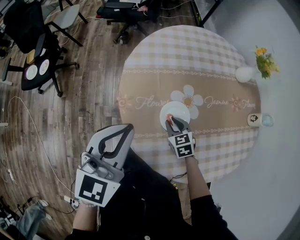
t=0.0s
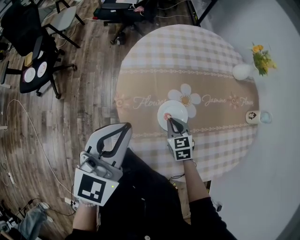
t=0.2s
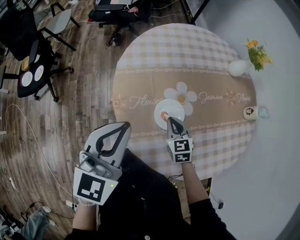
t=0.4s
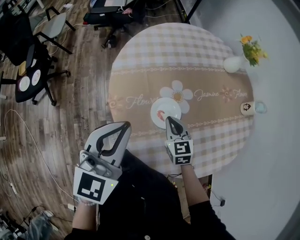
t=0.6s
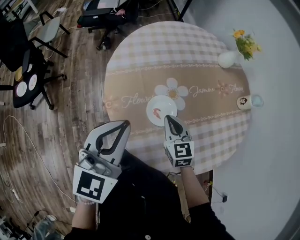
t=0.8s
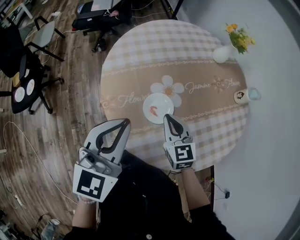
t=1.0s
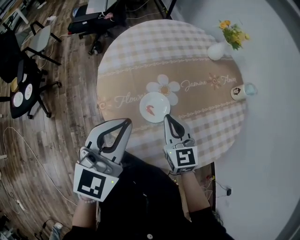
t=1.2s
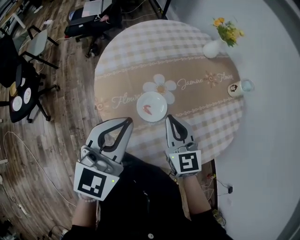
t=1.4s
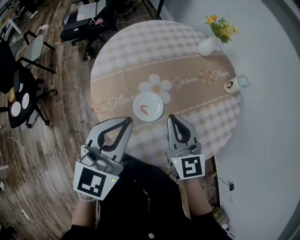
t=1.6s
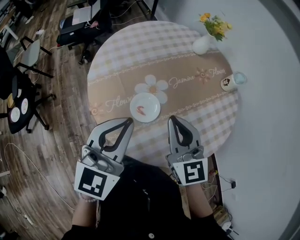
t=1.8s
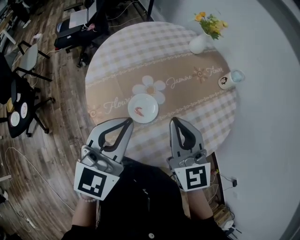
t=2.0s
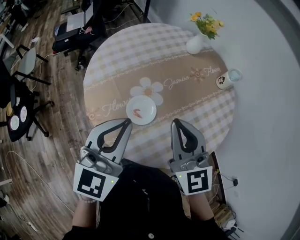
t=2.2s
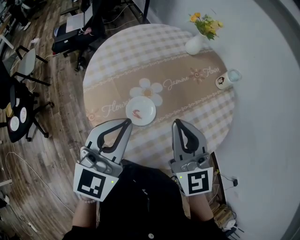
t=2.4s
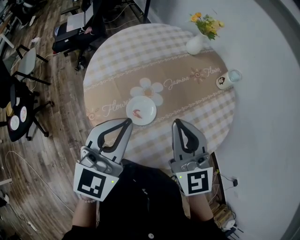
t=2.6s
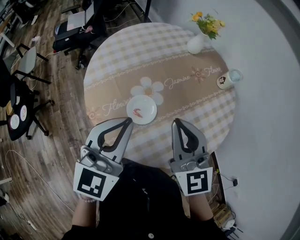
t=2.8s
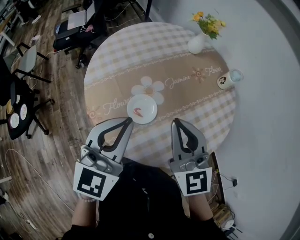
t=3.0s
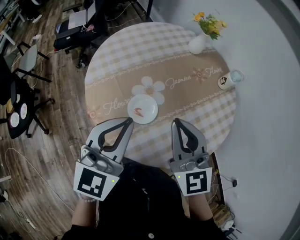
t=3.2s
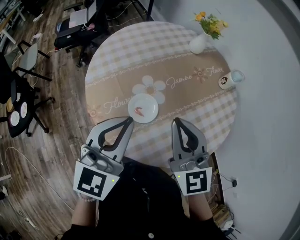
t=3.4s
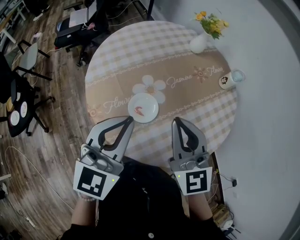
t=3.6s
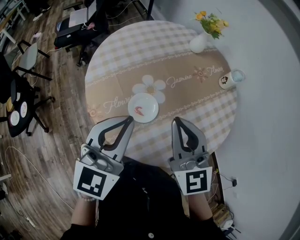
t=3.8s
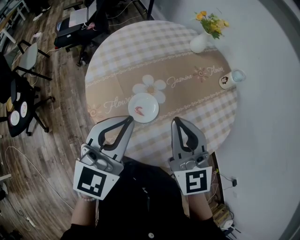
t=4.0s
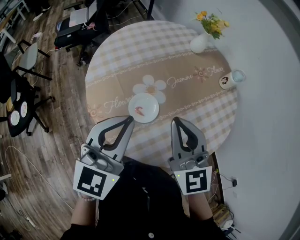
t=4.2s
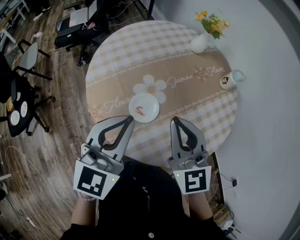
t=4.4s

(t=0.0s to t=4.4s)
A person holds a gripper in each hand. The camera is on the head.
t=0.0s - t=1.4s: The left gripper is displaced to the right by some 10 cm, while the right gripper shifts some 20 cm upward, and tilts its fingers some 30 degrees upward.
t=1.4s - t=3.0s: The right gripper moves upward, approximately 10 cm.
t=3.0s - t=4.4s: The two grippers keep their place.

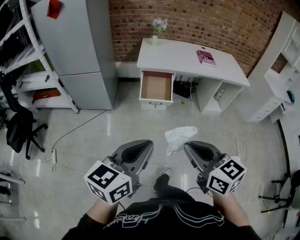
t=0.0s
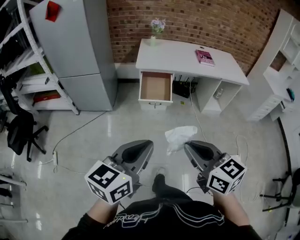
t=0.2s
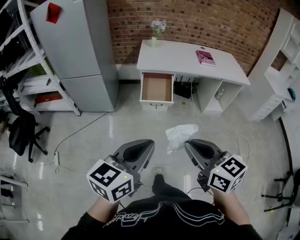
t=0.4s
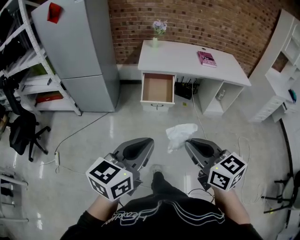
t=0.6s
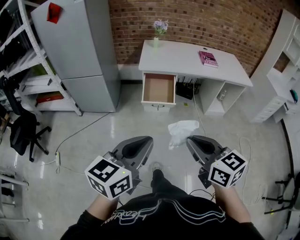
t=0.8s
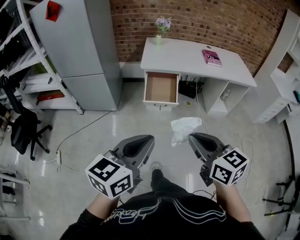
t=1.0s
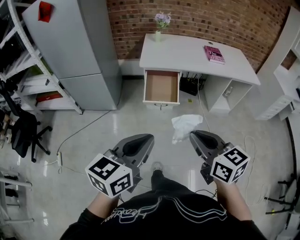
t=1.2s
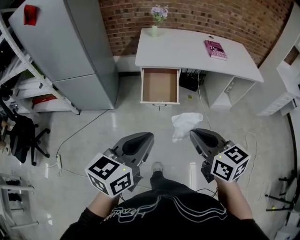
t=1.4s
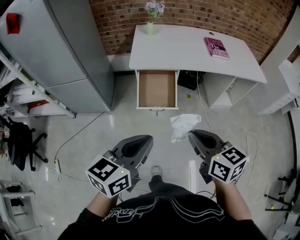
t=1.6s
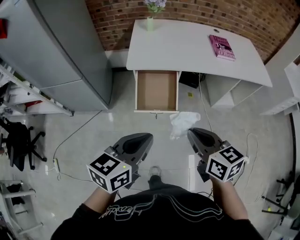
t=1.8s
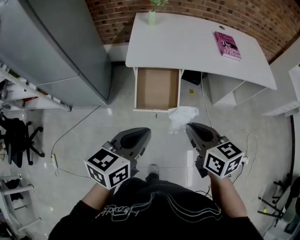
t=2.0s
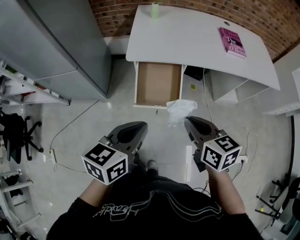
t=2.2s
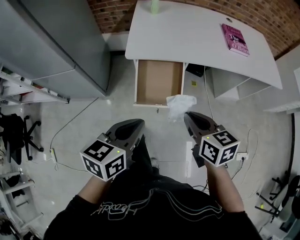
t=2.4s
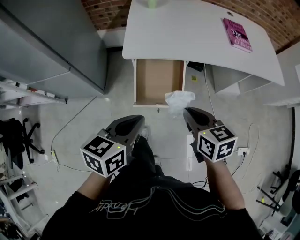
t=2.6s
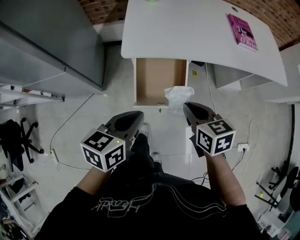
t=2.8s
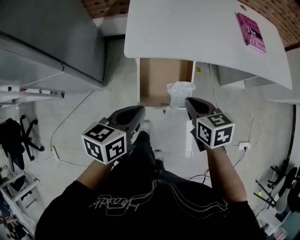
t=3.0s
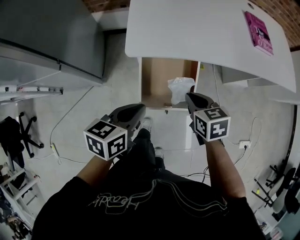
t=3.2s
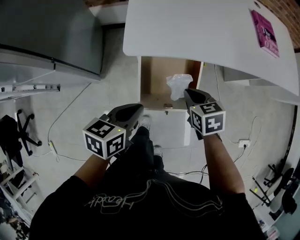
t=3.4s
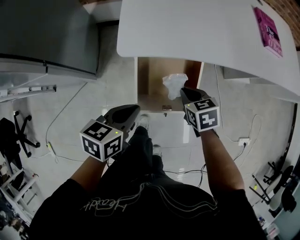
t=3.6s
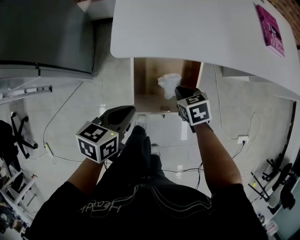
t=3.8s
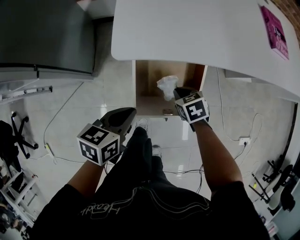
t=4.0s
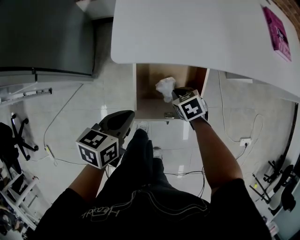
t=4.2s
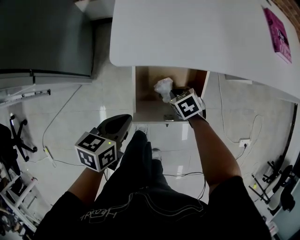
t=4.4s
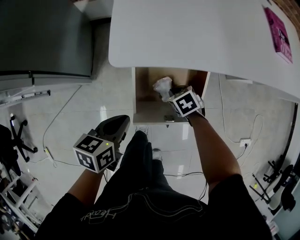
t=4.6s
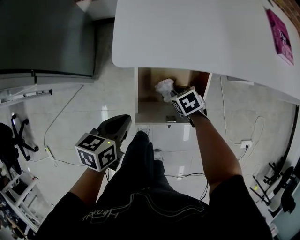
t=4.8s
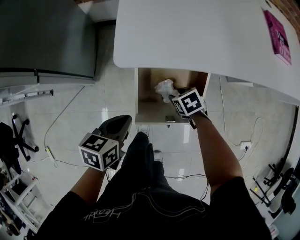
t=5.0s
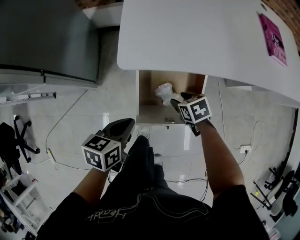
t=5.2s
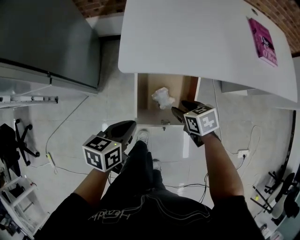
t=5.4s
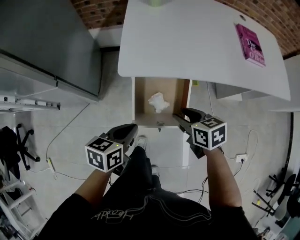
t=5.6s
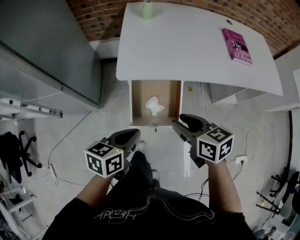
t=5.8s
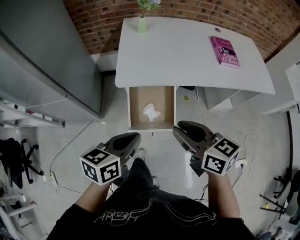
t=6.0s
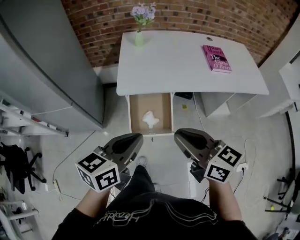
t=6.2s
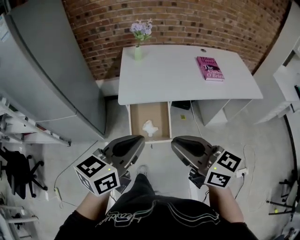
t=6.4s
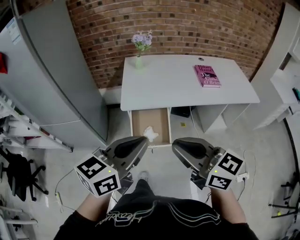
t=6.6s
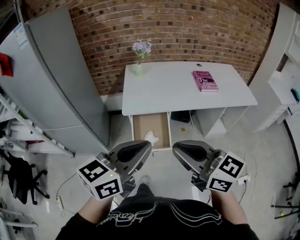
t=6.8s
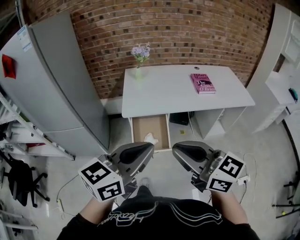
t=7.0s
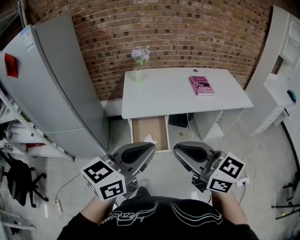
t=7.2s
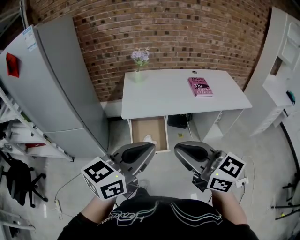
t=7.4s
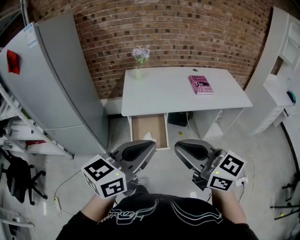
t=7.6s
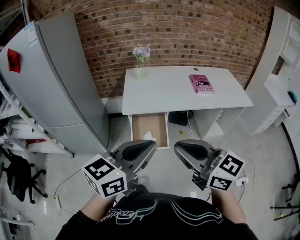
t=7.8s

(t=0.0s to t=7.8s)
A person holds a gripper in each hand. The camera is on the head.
t=0.0s - t=1.6s: Both grippers move forward, some 30 cm.
t=1.6s - t=3.2s: Both grippers travel together forward and downward, some 50 cm. The left gripper turns by about 20 degrees; the right gripper changes its angle by some 30 degrees.
t=3.2s - t=4.6s: The left gripper heads downward, covering roughly 15 cm, while the right gripper travels downward by roughly 25 cm, and swivels roughly 30 degrees.
t=4.6s - t=6.2s: The grippers both shift upward and backward by approximately 50 cm. The left gripper changes its angle by about 30 degrees. The right gripper tips its fingers upward by some 60 degrees, and opens and closes again.
t=6.2s - t=7.8s: Both grippers travel together backward and upward, roughly 25 cm.

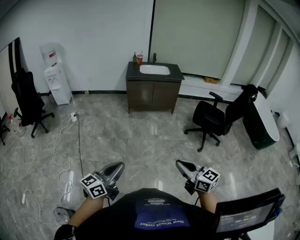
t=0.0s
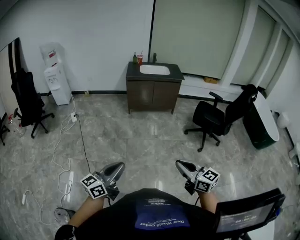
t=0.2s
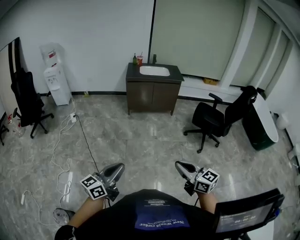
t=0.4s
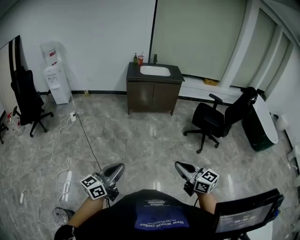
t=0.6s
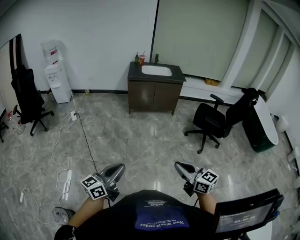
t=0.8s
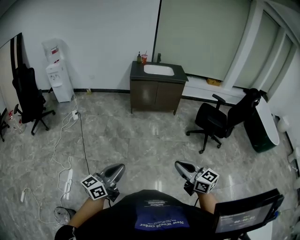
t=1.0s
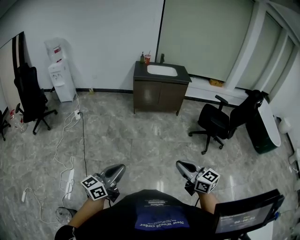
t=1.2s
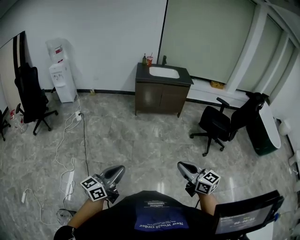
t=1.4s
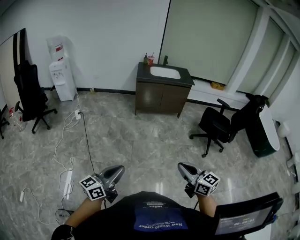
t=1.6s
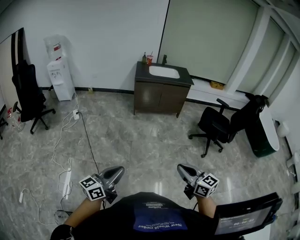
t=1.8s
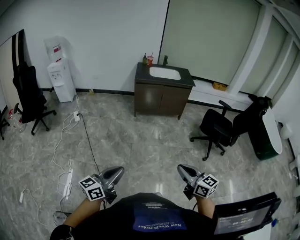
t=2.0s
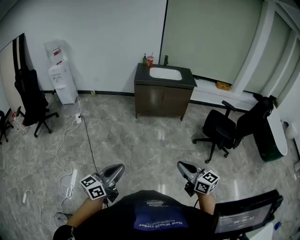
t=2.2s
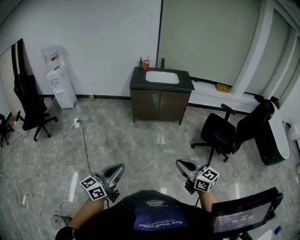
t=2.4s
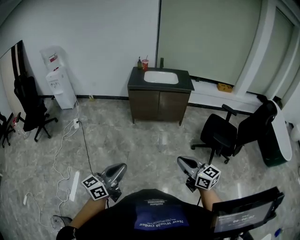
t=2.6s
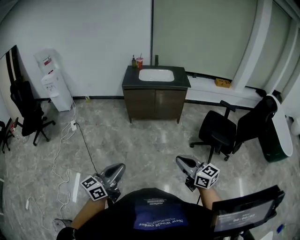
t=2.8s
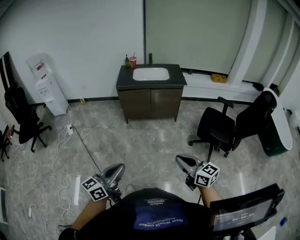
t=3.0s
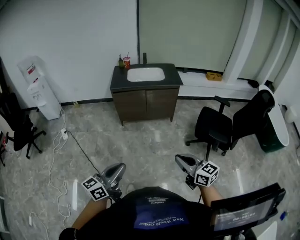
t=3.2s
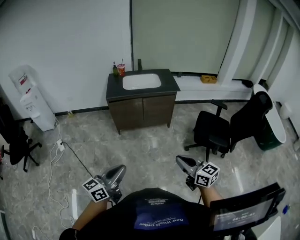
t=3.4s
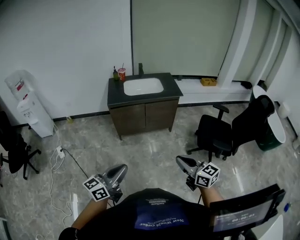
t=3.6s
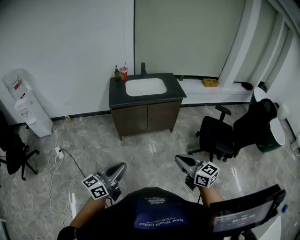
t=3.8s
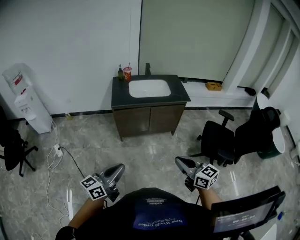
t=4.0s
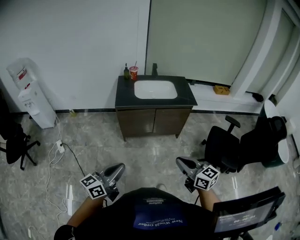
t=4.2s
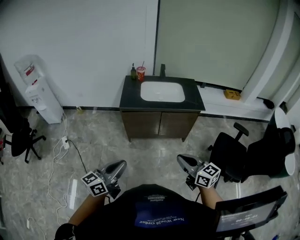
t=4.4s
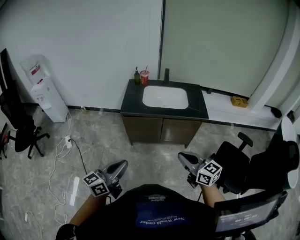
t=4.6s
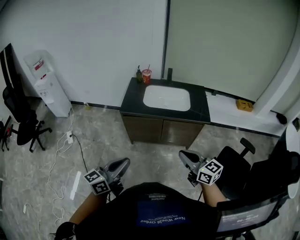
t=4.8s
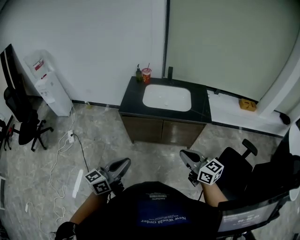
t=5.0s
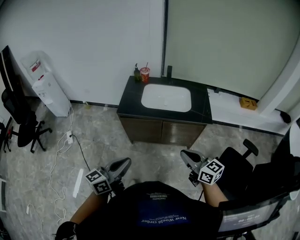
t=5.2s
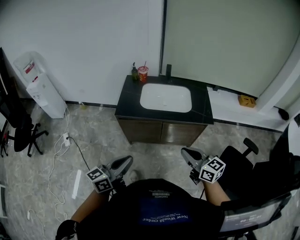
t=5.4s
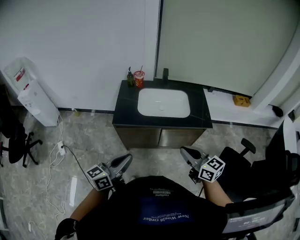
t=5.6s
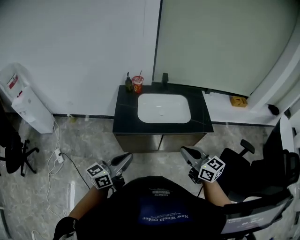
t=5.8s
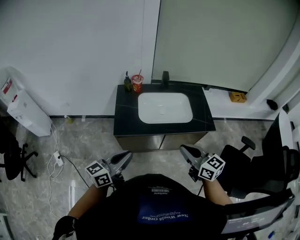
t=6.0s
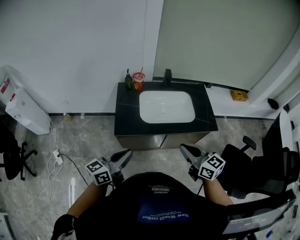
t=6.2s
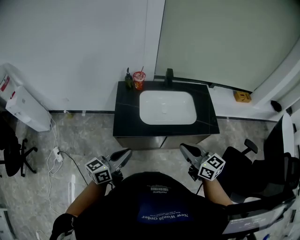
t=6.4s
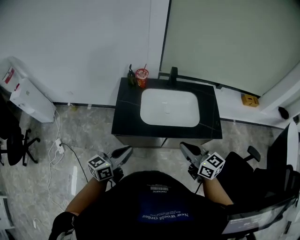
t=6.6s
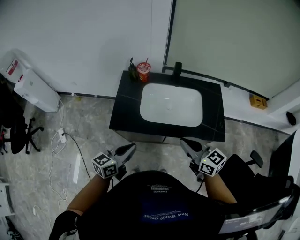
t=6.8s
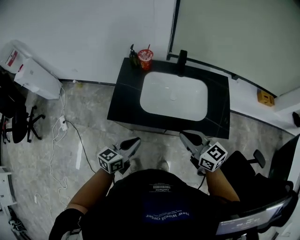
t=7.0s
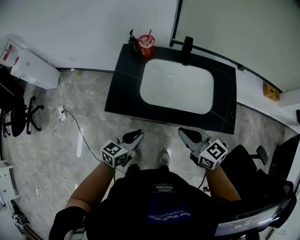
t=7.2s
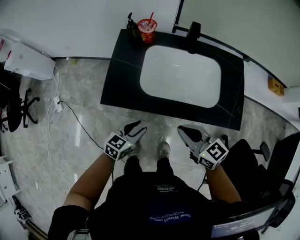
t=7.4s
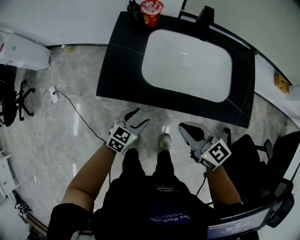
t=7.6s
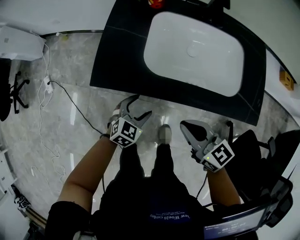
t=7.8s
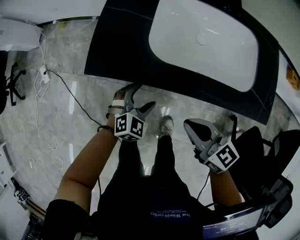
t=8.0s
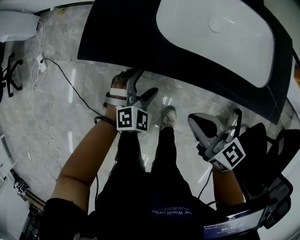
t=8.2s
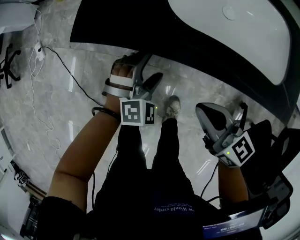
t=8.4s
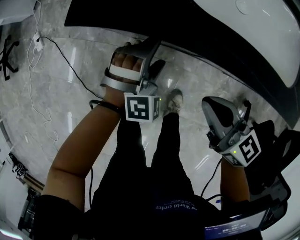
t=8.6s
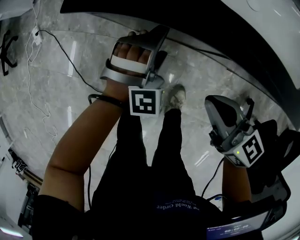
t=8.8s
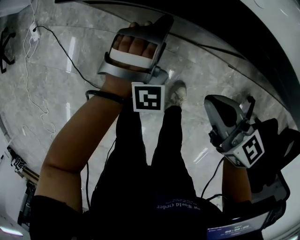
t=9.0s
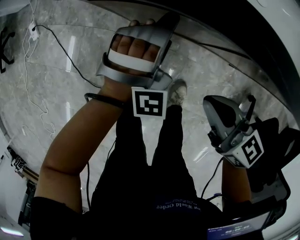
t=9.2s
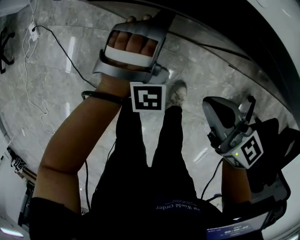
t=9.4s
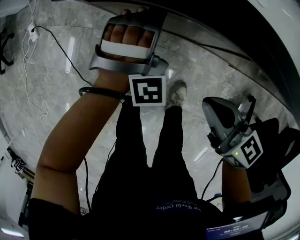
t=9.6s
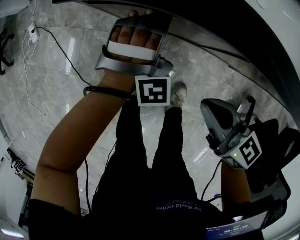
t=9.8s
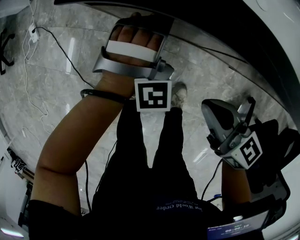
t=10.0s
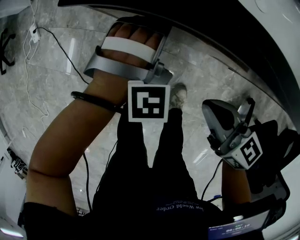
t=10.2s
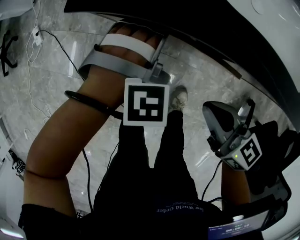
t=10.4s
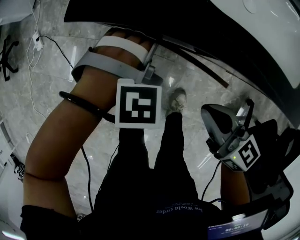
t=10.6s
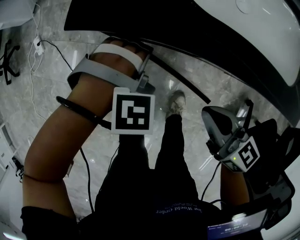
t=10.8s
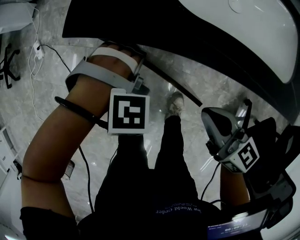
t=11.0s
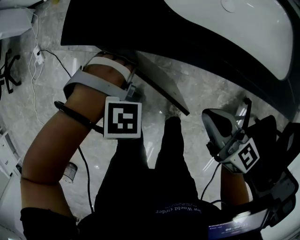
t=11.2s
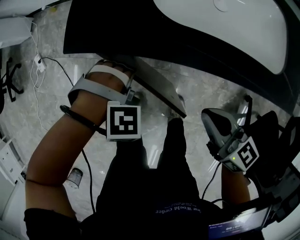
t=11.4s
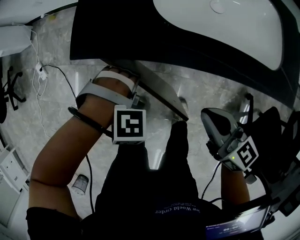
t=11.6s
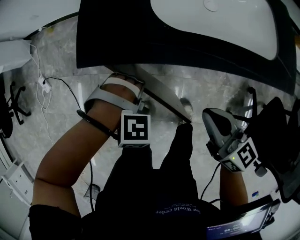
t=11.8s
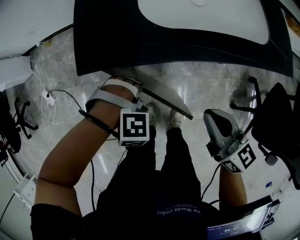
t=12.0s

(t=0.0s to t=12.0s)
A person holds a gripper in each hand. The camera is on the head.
t=0.0s - t=1.6s: Both grippers travel together to the left, roughly 10 cm.
t=1.6s - t=3.0s: Both grippers travel together forward and to the right, roughly 35 cm.
t=3.0s - t=4.4s: Both grippers move forward, about 35 cm.
t=4.4s - t=6.0s: The two grippers go some 35 cm forward.
t=6.0s - t=7.6s: The two grippers go approximately 30 cm downward and forward. The left gripper points its fingers about 40 degrees further downward, and opens. Meanwhile the right gripper turns by approximately 20 degrees.
t=7.6s - t=9.0s: The grippers both shift downward by roughly 15 cm. The left gripper rolls clockwise, seen from behind, by roughly 70 degrees, and opens.
t=9.0s - t=10.4s: The left gripper rotates approximately 20 degrees.
t=10.4s - t=12.0s: The right gripper goes some 10 cm upward, and turns by roughly 30 degrees; the left gripper changes place by roughly 5 cm, swivels roughly 30 degrees, and closes.
